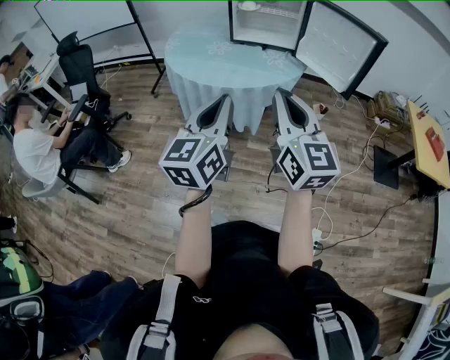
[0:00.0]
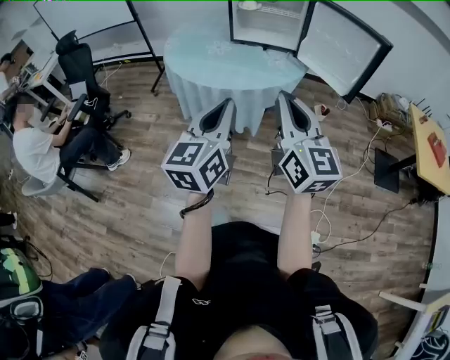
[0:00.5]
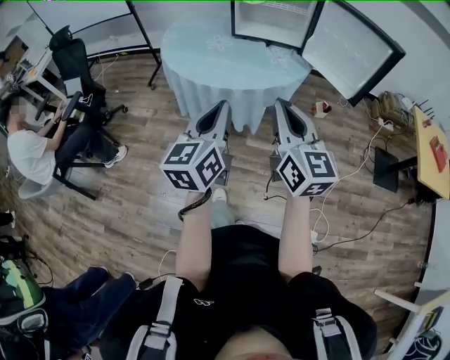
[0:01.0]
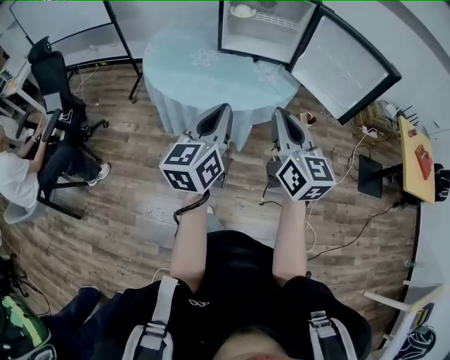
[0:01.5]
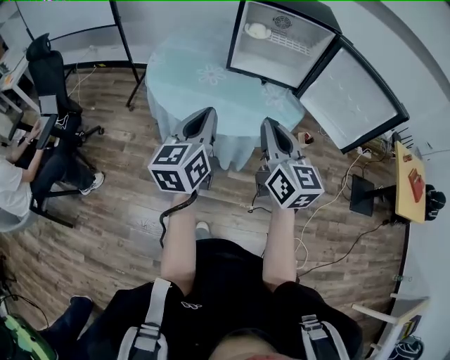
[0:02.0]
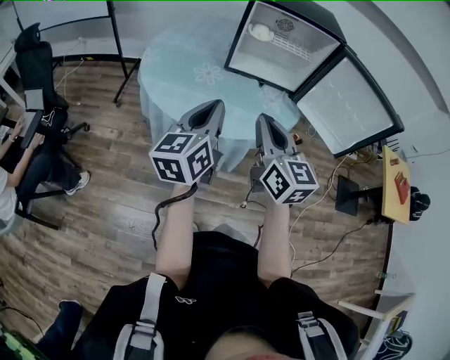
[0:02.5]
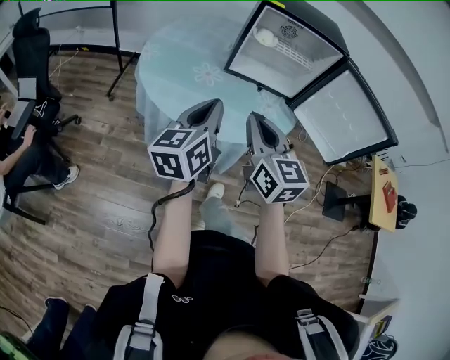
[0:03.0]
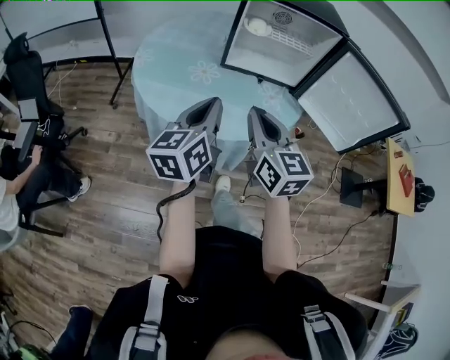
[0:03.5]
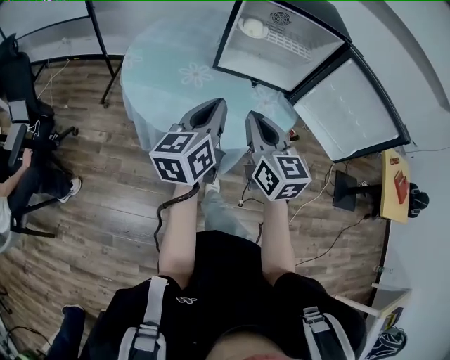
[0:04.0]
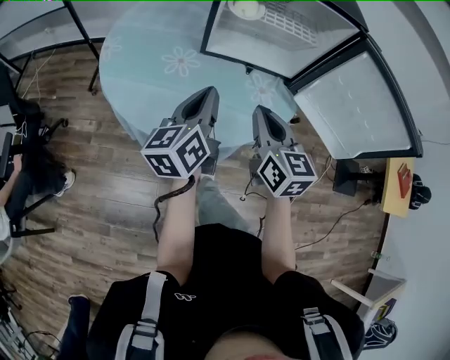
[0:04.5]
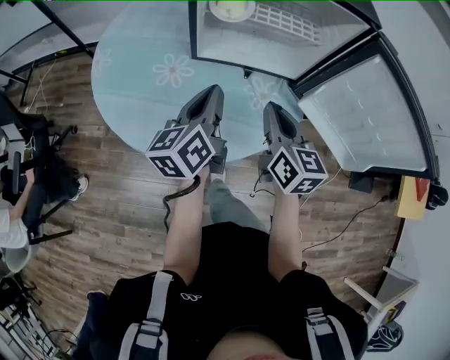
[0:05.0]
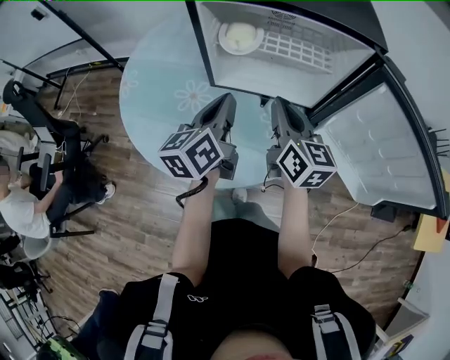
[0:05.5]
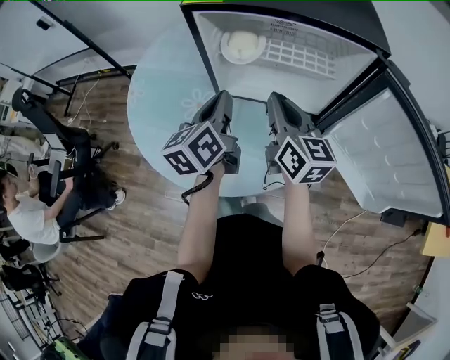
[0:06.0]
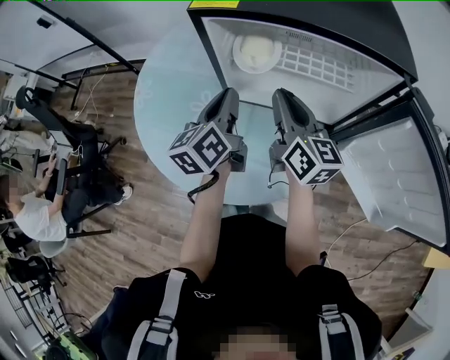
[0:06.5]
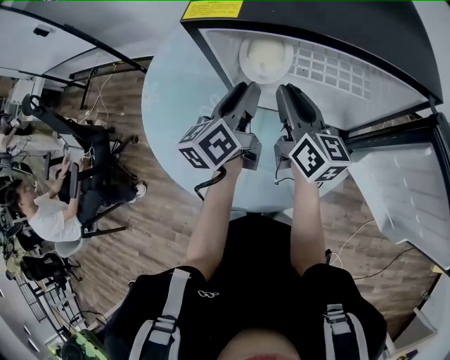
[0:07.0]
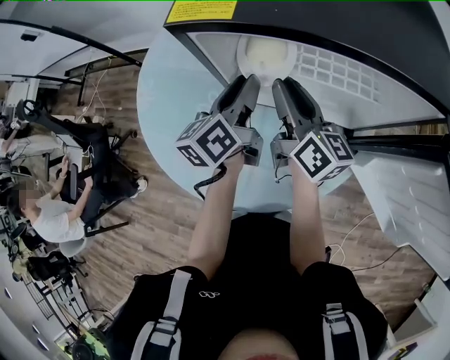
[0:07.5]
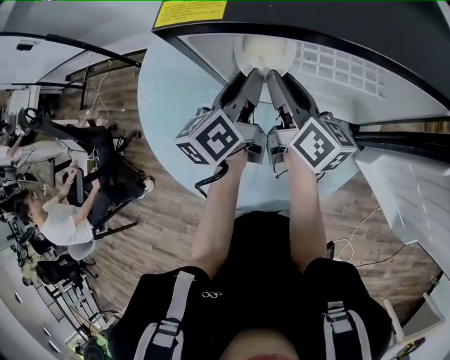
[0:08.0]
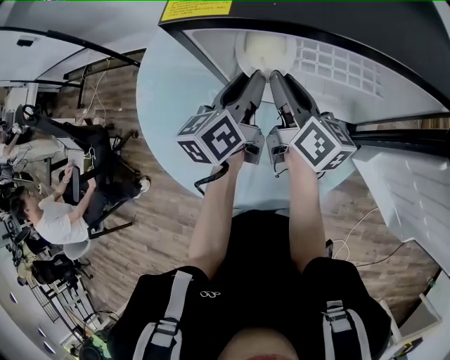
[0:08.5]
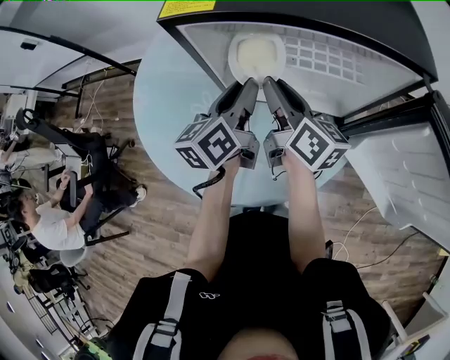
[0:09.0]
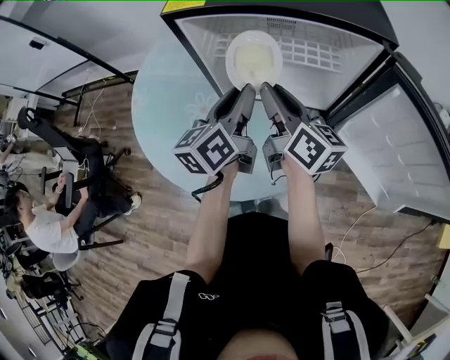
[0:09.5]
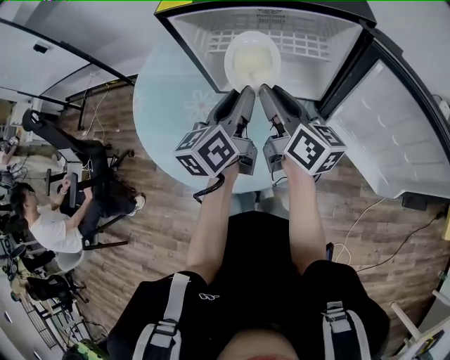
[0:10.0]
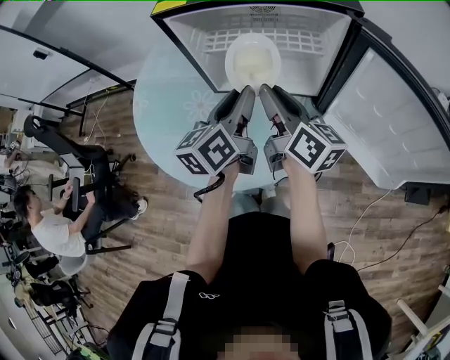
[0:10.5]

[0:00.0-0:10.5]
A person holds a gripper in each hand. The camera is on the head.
0:00.0 to 0:02.0: The two grippers go about 25 cm forward.
0:02.0 to 0:04.0: The grippers both shift forward by roughly 15 cm.
0:04.0 to 0:06.5: Both grippers travel together forward, roughly 35 cm. The right gripper turns by some 20 degrees.
0:06.5 to 0:08.5: The grippers both shift forward by approximately 10 cm. The left gripper opens; the right gripper rotates approximately 20 degrees.
0:08.5 to 0:10.5: Both grippers move backward and to the right, some 15 cm.

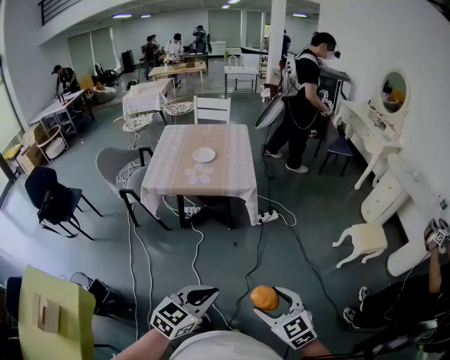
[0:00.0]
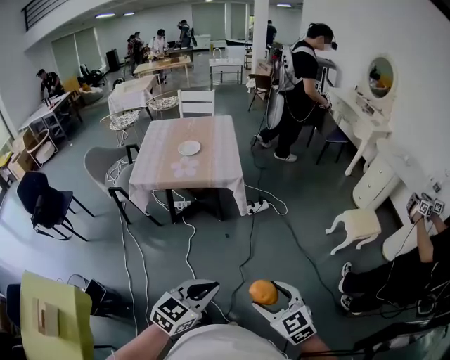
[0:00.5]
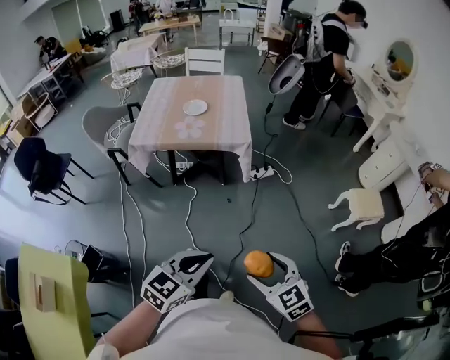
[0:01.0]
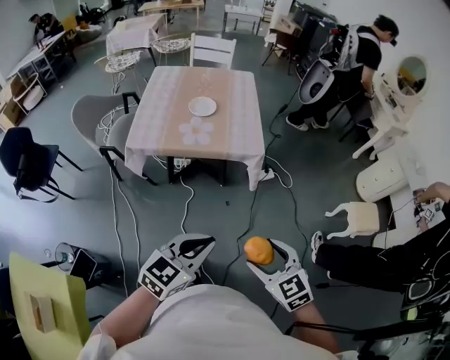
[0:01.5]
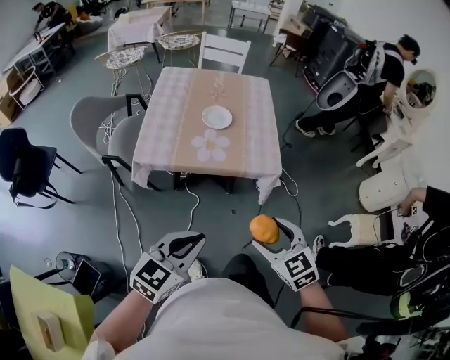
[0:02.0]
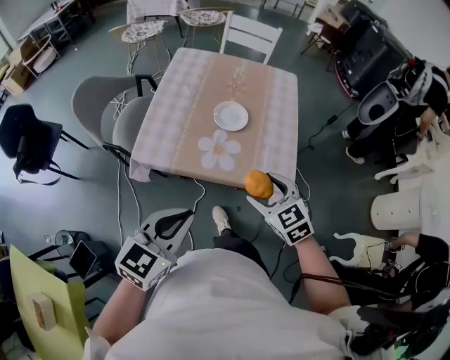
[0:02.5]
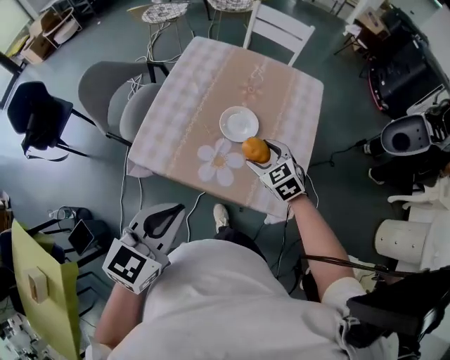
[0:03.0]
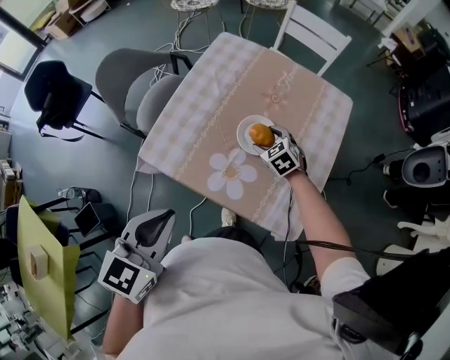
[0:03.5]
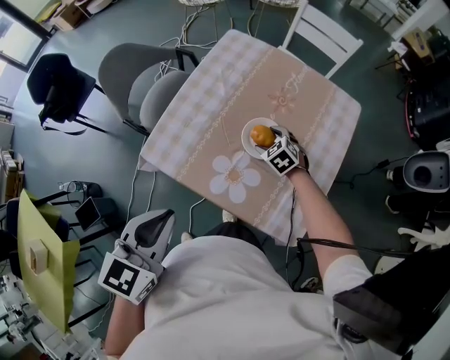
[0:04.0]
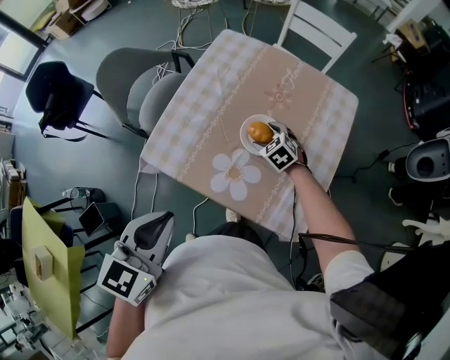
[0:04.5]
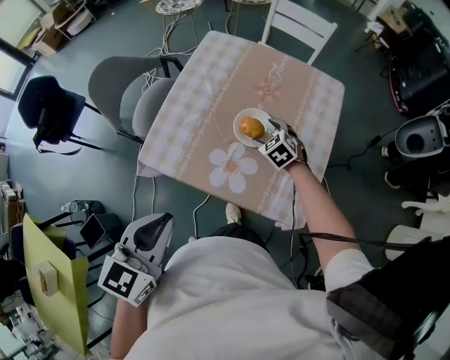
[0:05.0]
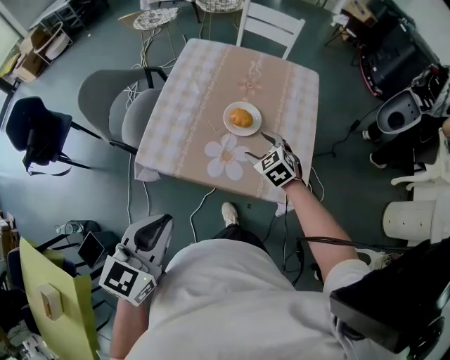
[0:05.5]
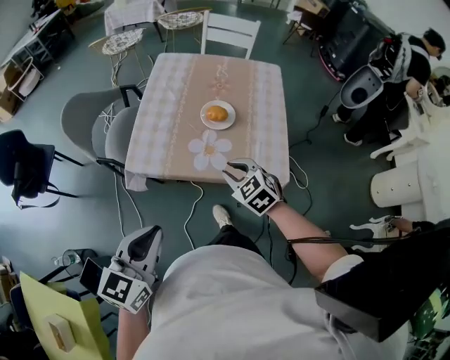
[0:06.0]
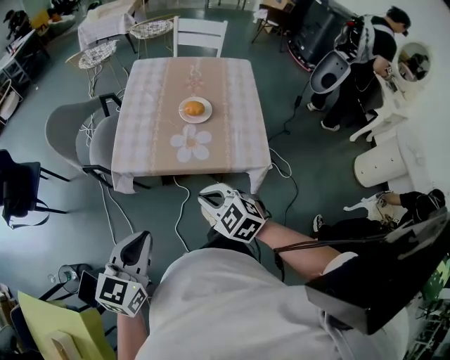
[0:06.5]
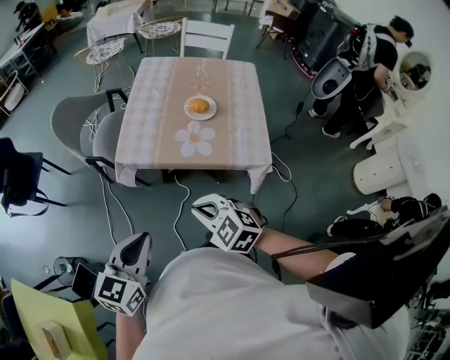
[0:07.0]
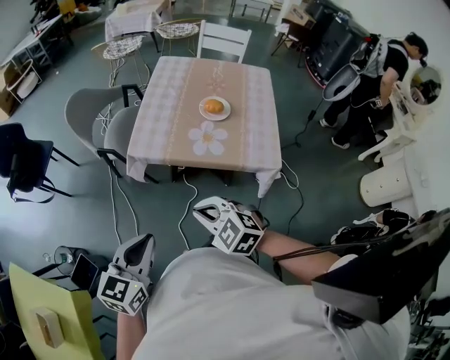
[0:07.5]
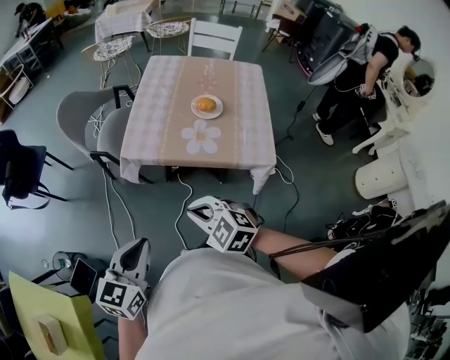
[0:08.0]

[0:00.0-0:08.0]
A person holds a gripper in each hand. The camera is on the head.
0:00.0 to 0:02.0: The two grippers go about 35 cm forward and to the left.
0:02.0 to 0:04.0: The right gripper shifts by some 60 cm, and changes its angle by some 40 degrees. Meanwhile the left gripper moves roughly 30 cm, and swivels approximately 40 degrees.
0:04.0 to 0:06.0: The left gripper moves backward and to the left, some 20 cm, and rotates about 20 degrees. The right gripper shifts approximately 30 cm backward and upward, changes its angle by roughly 20 degrees, and closes up.
0:06.0 to 0:08.0: The right gripper heads backward and to the left, covering some 25 cm, while the left gripper travels backward and to the left by about 15 cm.

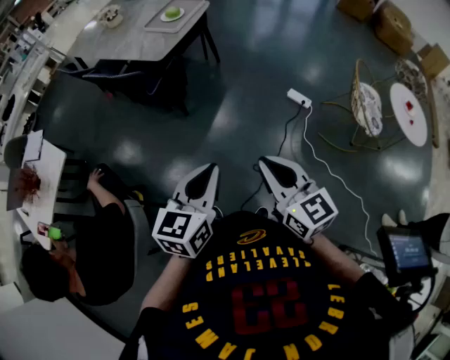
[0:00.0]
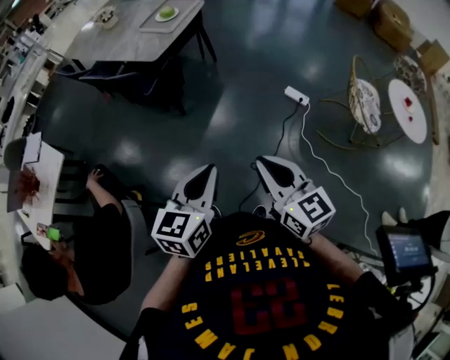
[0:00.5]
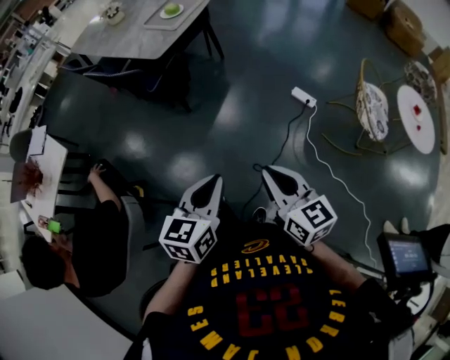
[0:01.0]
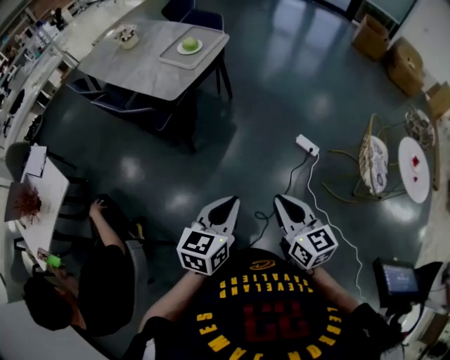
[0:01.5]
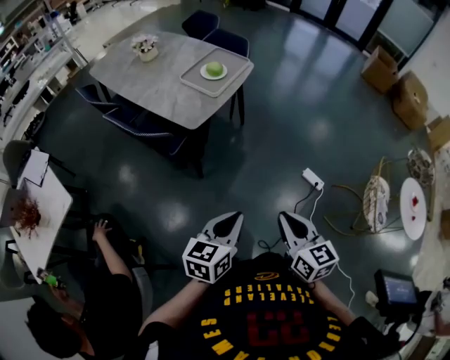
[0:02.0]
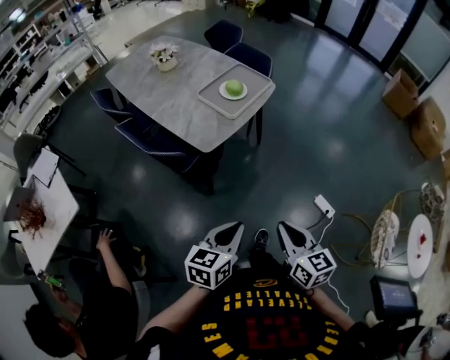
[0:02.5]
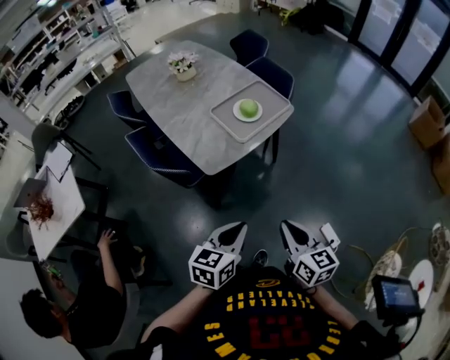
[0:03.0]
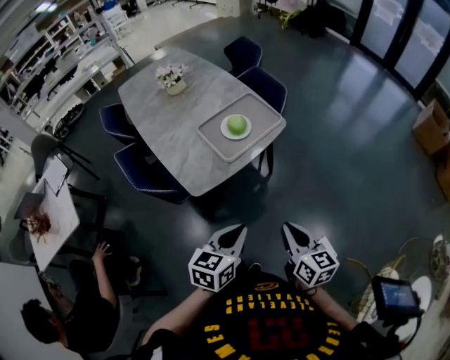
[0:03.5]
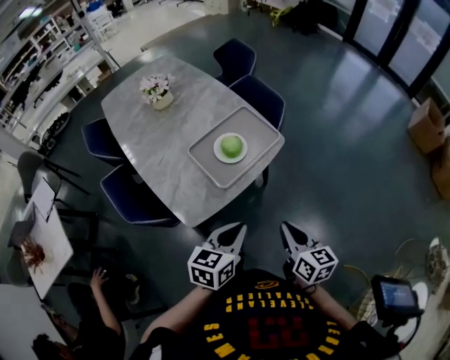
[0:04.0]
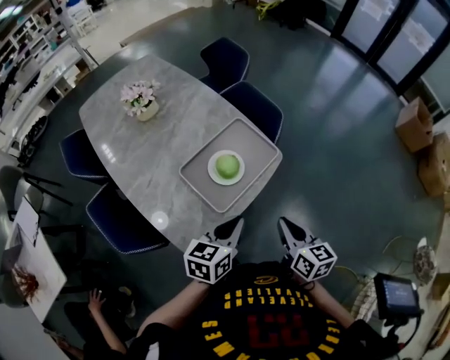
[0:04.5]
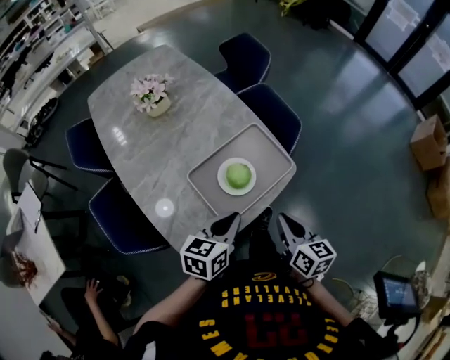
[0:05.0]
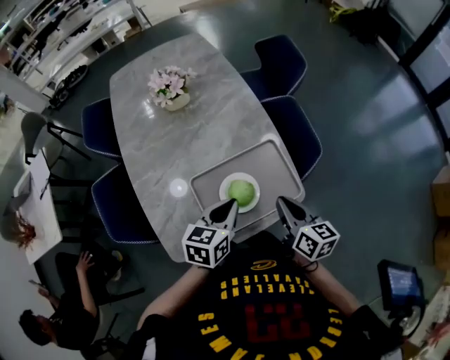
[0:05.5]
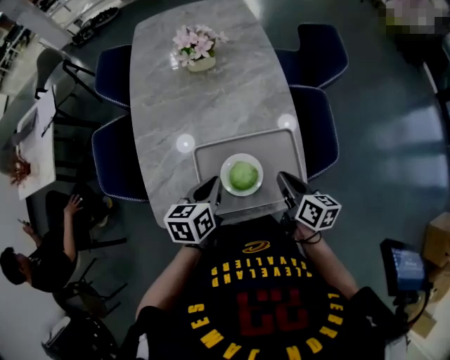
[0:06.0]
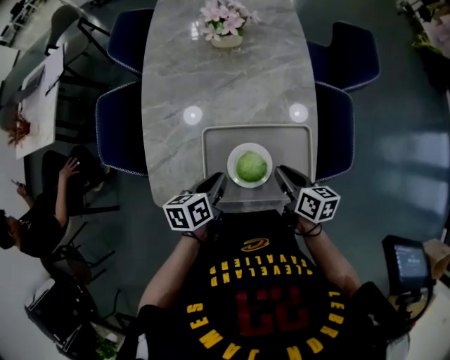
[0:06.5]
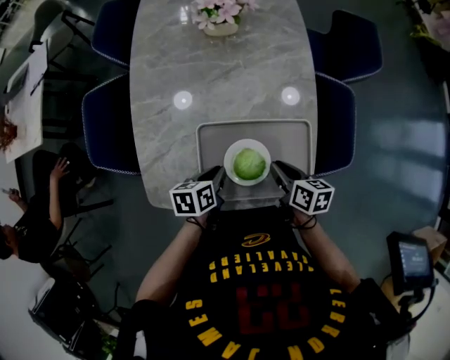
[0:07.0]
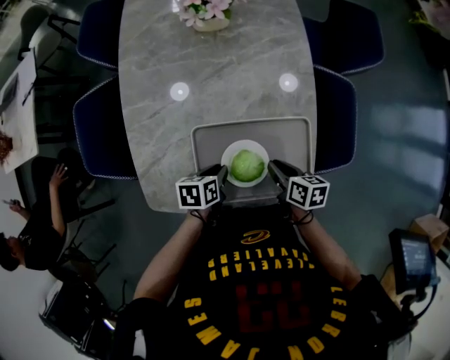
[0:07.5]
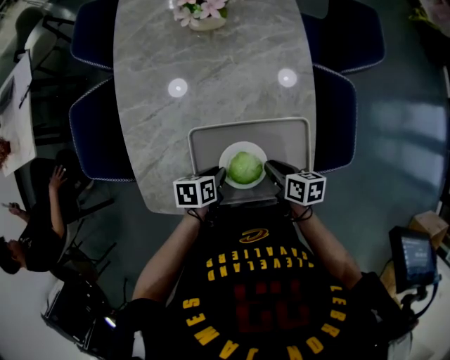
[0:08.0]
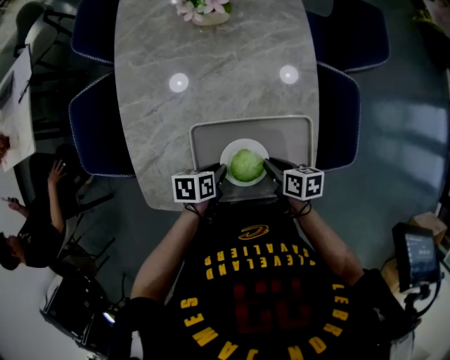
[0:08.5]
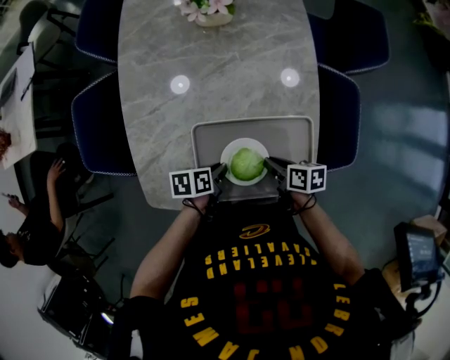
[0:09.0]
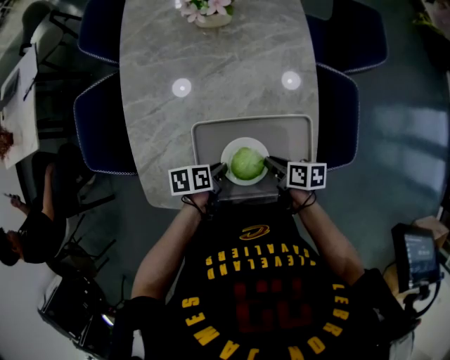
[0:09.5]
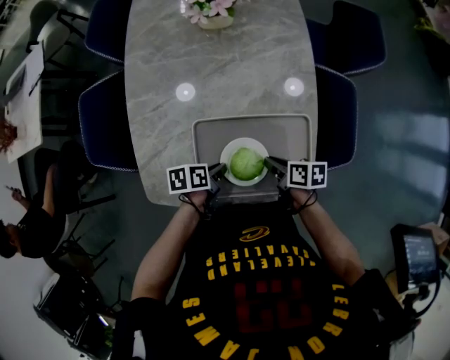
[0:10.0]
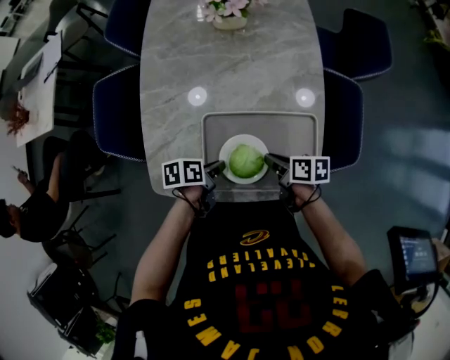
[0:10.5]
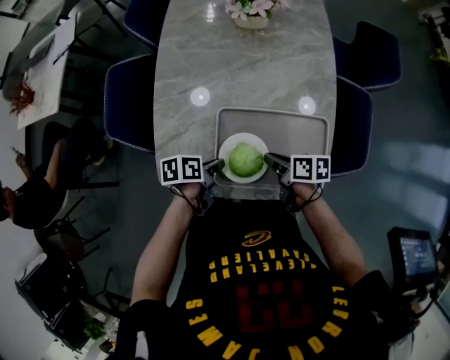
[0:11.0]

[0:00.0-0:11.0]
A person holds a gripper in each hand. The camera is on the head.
0:00.0 to 0:02.0: The two grippers go approximately 25 cm forward.
0:02.0 to 0:03.5: Both grippers move forward, roughly 35 cm.
0:03.5 to 0:05.5: Both grippers are carried forward, about 50 cm.
0:05.5 to 0:07.5: Both grippers move downward, roughly 20 cm. The left gripper changes its angle by some 40 degrees, while the right gripper swivels approximately 40 degrees.
0:07.5 to 0:09.0: The grippers make only small movements.
0:09.0 to 0:11.0: The grippers both shift to the left by some 5 cm.
